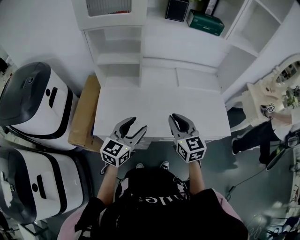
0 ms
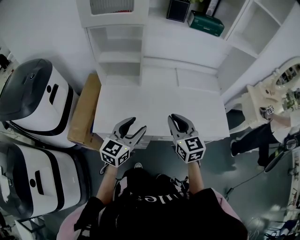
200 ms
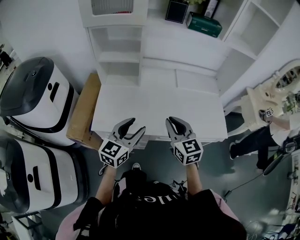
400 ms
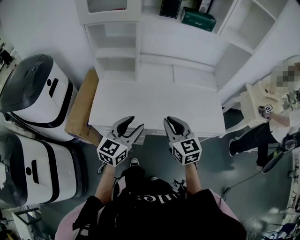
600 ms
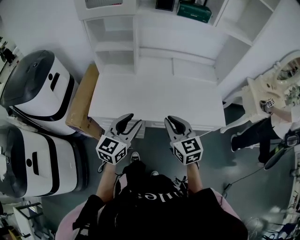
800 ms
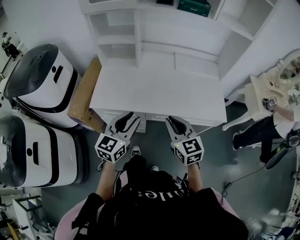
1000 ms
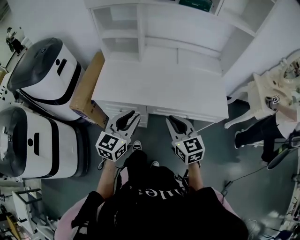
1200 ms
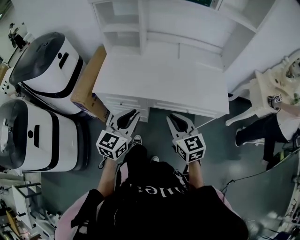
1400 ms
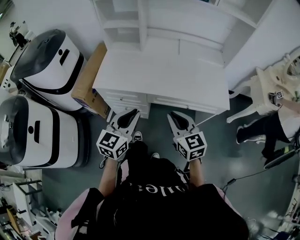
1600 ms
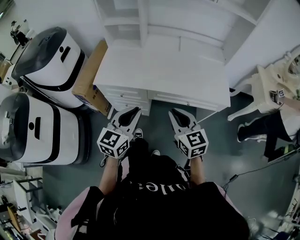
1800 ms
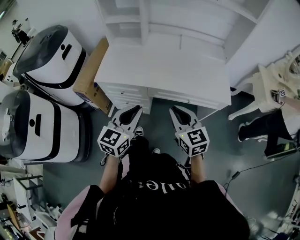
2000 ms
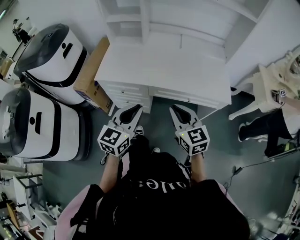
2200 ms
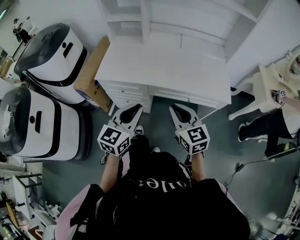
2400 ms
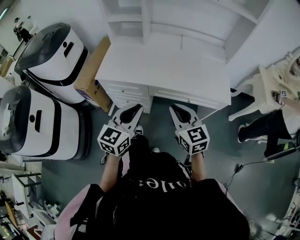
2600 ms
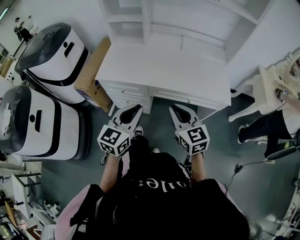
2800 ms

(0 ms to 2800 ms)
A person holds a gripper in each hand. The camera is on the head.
0 ms - 1400 ms: The two grippers go about 20 cm backward and to the right. The left gripper closes up.
1400 ms - 2800 ms: The left gripper goes roughly 5 cm backward.

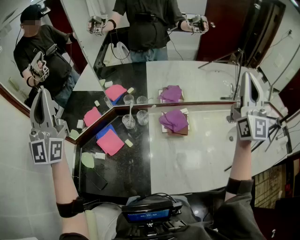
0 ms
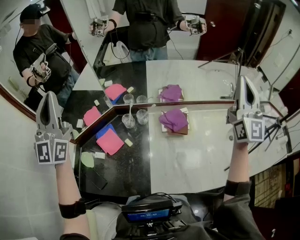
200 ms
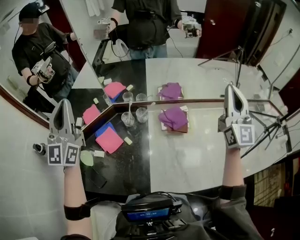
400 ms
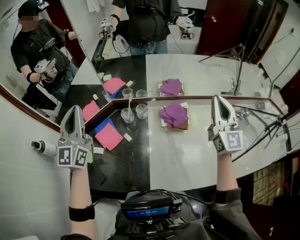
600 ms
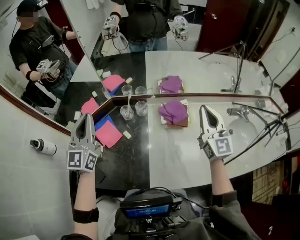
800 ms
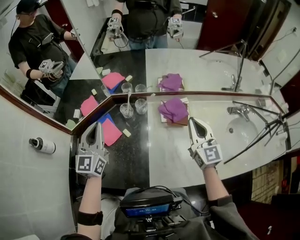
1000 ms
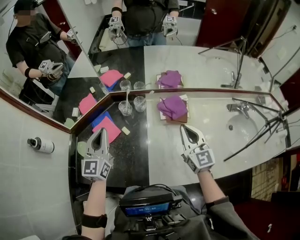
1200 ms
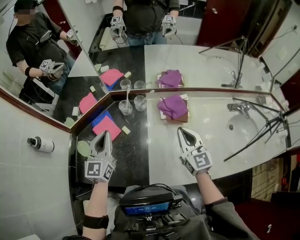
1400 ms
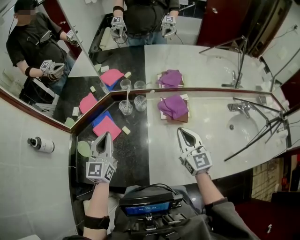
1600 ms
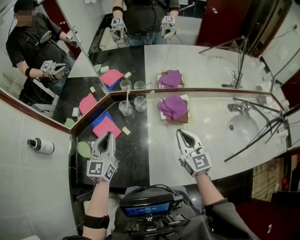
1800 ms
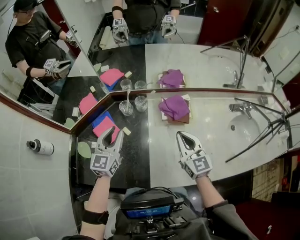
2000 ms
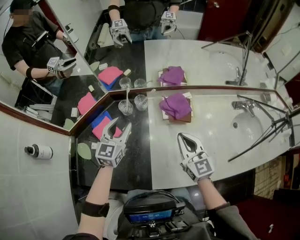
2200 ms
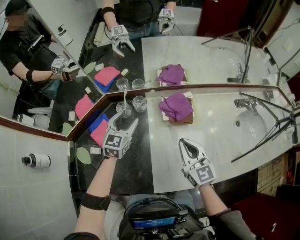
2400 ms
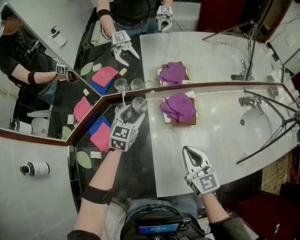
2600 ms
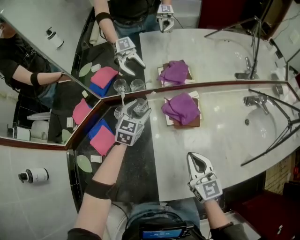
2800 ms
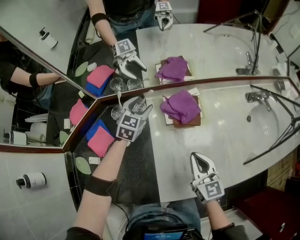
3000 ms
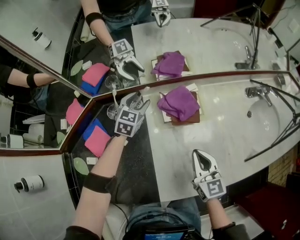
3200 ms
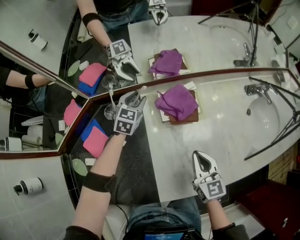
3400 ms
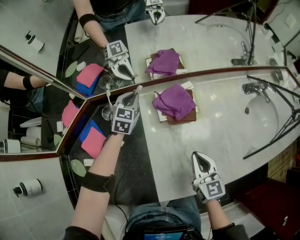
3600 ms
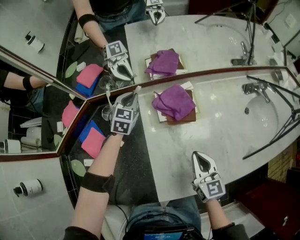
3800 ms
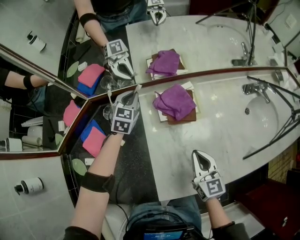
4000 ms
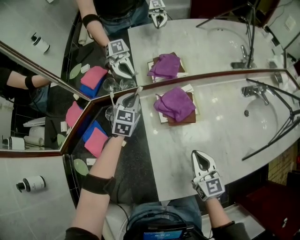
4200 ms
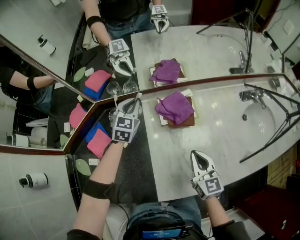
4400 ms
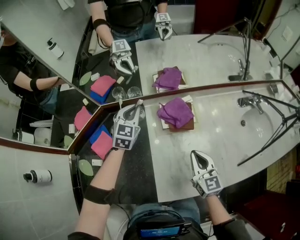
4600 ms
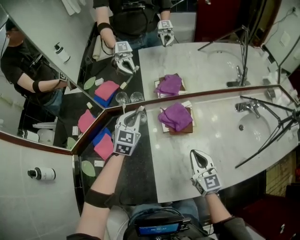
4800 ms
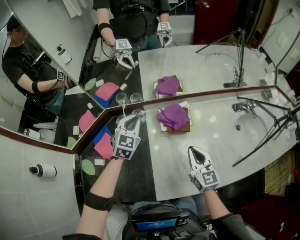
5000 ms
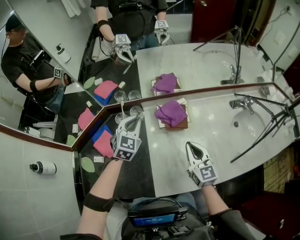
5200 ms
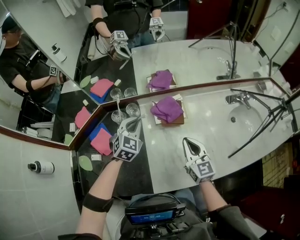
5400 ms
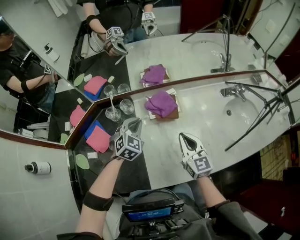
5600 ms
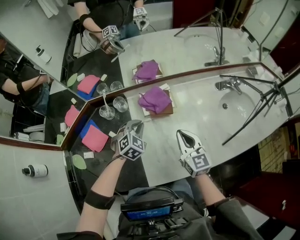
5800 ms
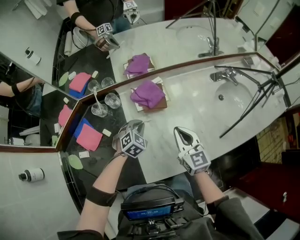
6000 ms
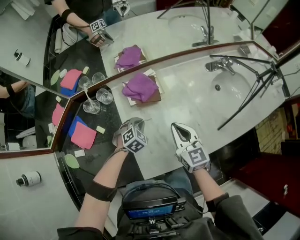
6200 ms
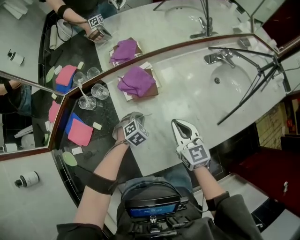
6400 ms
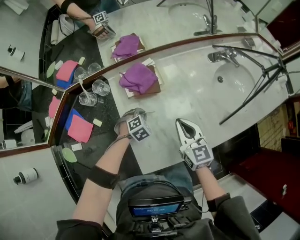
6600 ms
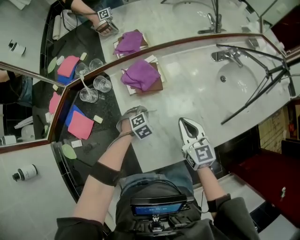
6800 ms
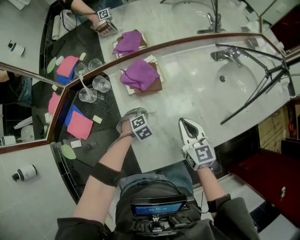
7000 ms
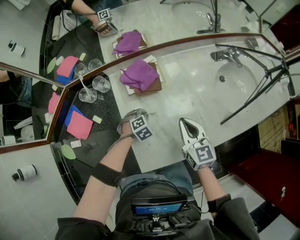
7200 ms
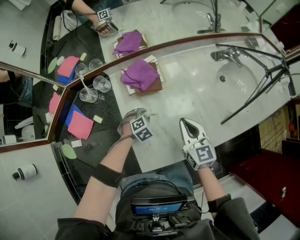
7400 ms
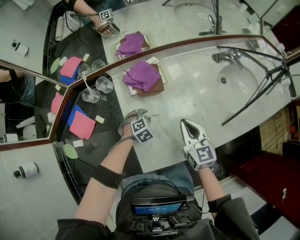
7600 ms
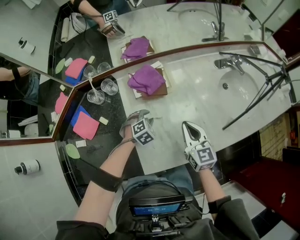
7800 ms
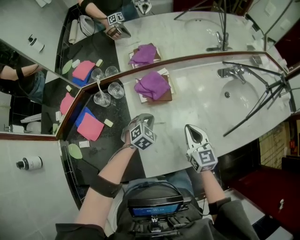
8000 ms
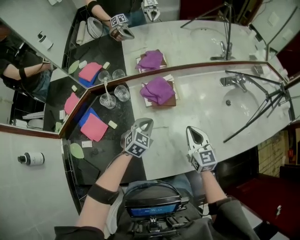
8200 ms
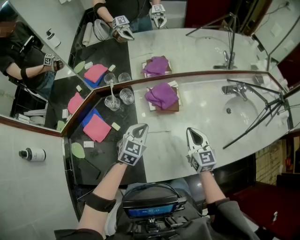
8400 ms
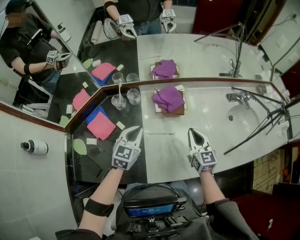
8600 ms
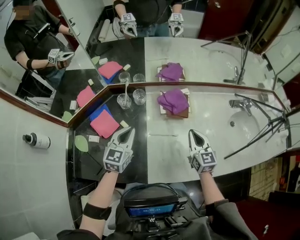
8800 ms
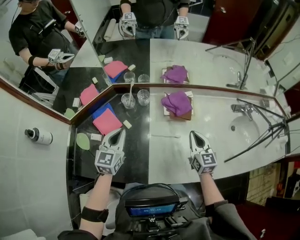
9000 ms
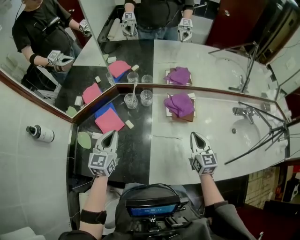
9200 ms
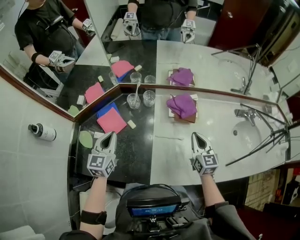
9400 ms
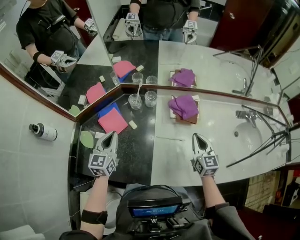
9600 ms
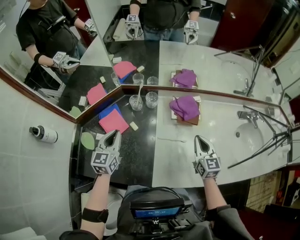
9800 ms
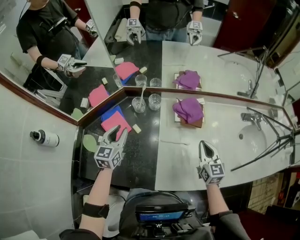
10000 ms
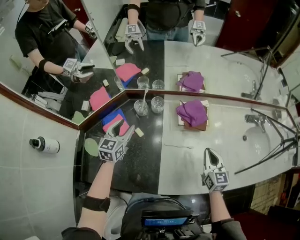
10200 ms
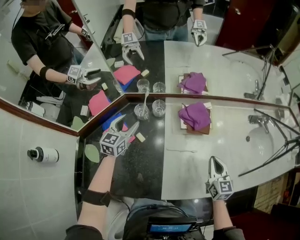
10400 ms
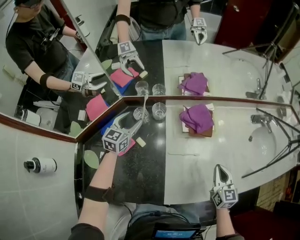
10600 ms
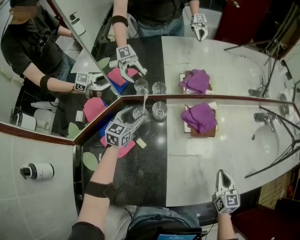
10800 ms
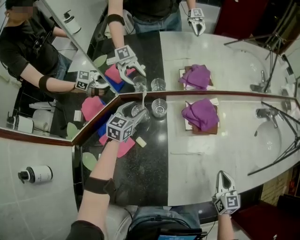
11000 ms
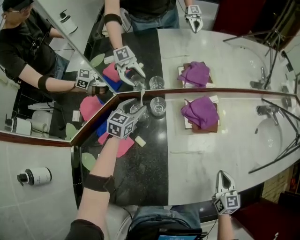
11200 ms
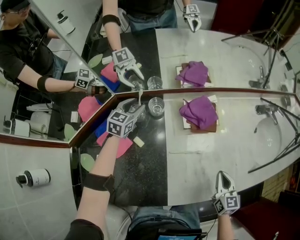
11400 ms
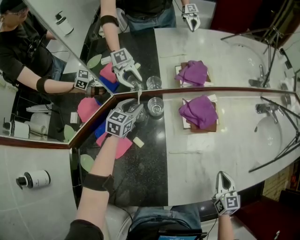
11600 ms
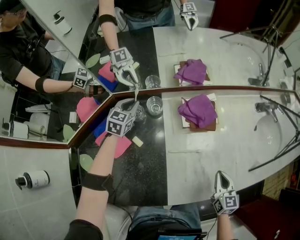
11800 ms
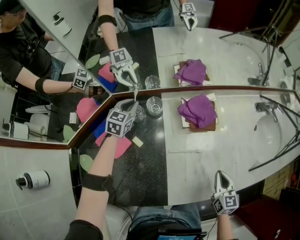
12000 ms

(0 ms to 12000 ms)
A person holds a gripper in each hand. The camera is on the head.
0 ms - 1600 ms: The left gripper heads downward, covering some 35 cm, and tips its fingers downward by approximately 40 degrees; the right gripper travels downward and to the left by about 40 cm, and tilts its fingers some 40 degrees downward.
1600 ms - 3000 ms: The right gripper shifts approximately 10 cm downward; the left gripper moves forward, downward and to the right, some 35 cm, changes its angle by about 40 degrees, and opens its fingers.
3000 ms - 4400 ms: The left gripper closes up.
4400 ms - 6000 ms: The left gripper moves backward and to the right, about 25 cm, and changes its angle by roughly 30 degrees. The right gripper travels upward by approximately 5 cm.
6000 ms - 7600 ms: The left gripper heads downward, covering approximately 15 cm, changes its angle by some 20 degrees, and opens up. Meanwhile the right gripper heads downward, covering some 5 cm.
7600 ms - 9000 ms: The right gripper moves to the left, roughly 10 cm. Meanwhile the left gripper heads upward and to the left, covering roughly 35 cm, tilts its fingers about 50 degrees upward, and closes up.
9000 ms - 10400 ms: The left gripper is displaced forward and downward by roughly 15 cm, and opens its fingers.
10400 ms - 12000 ms: The left gripper travels forward and downward by roughly 15 cm, and closes, while the right gripper is displaced downward and backward by approximately 10 cm.

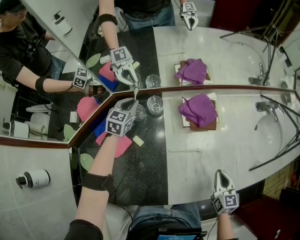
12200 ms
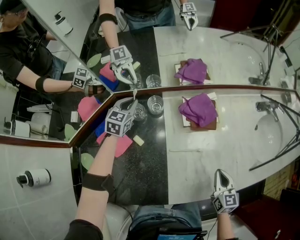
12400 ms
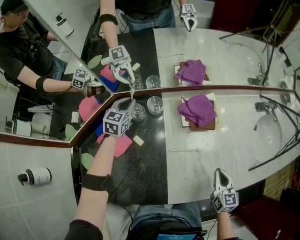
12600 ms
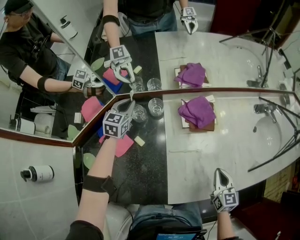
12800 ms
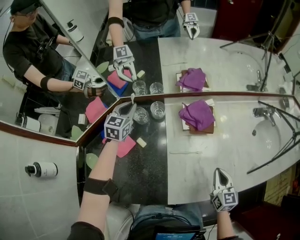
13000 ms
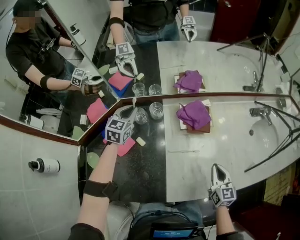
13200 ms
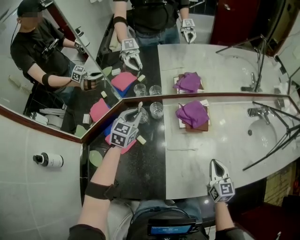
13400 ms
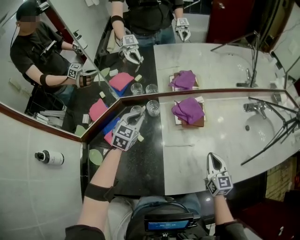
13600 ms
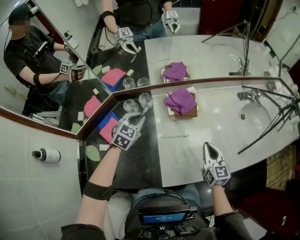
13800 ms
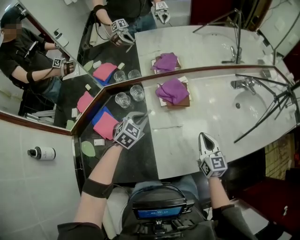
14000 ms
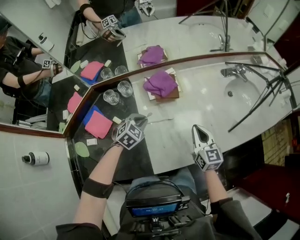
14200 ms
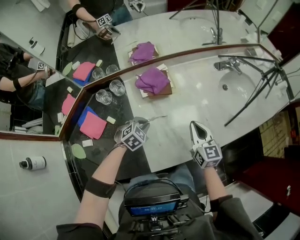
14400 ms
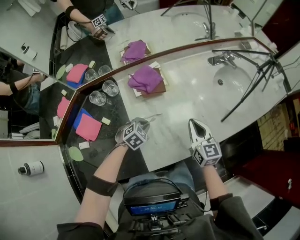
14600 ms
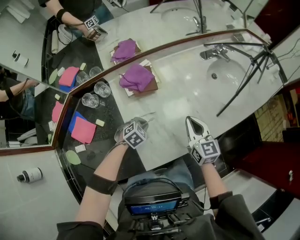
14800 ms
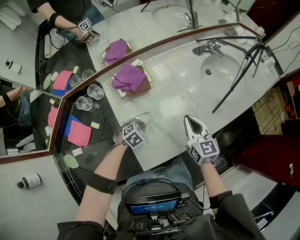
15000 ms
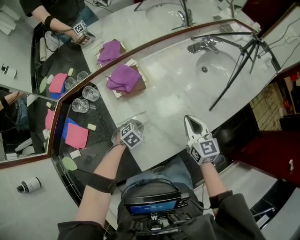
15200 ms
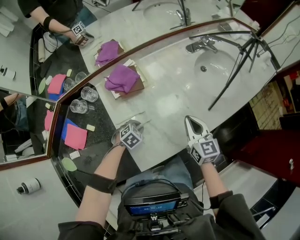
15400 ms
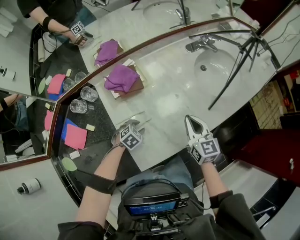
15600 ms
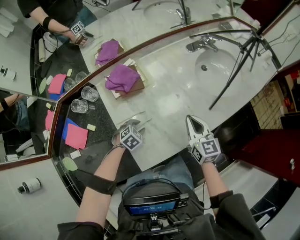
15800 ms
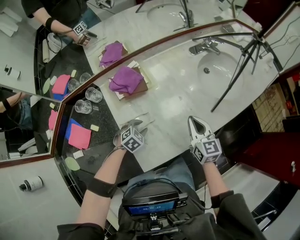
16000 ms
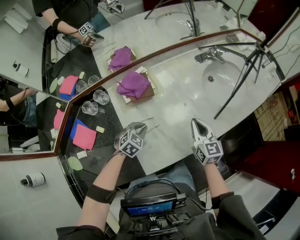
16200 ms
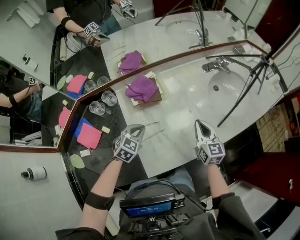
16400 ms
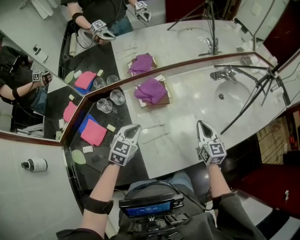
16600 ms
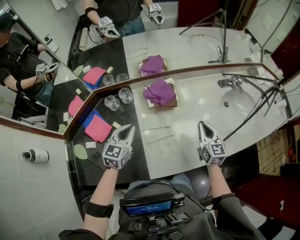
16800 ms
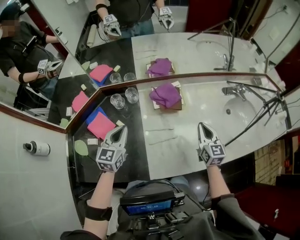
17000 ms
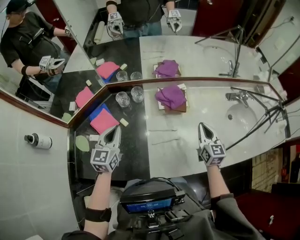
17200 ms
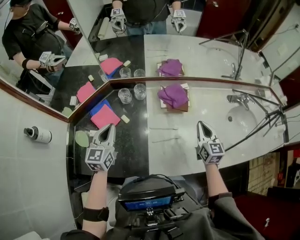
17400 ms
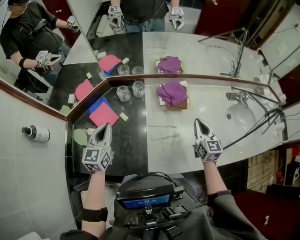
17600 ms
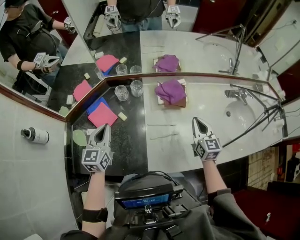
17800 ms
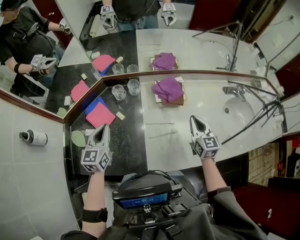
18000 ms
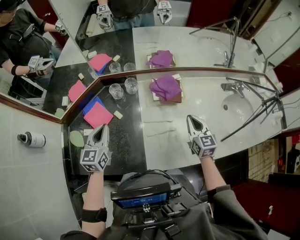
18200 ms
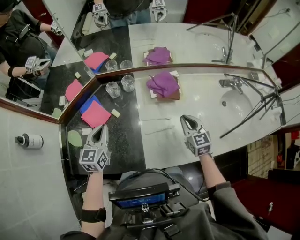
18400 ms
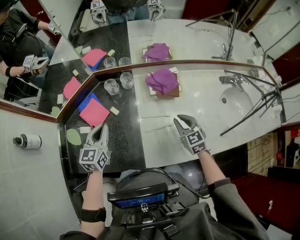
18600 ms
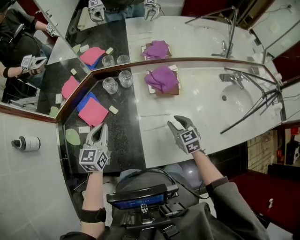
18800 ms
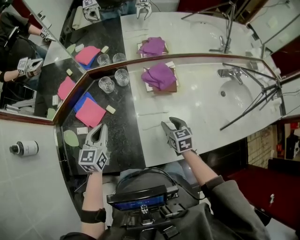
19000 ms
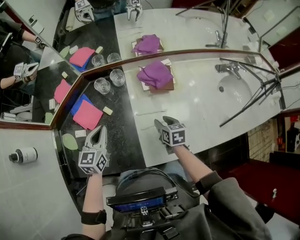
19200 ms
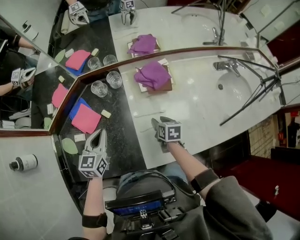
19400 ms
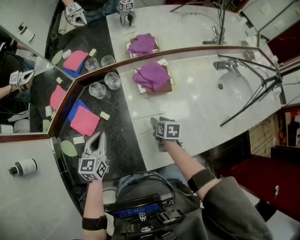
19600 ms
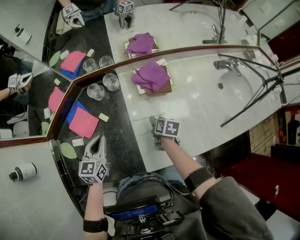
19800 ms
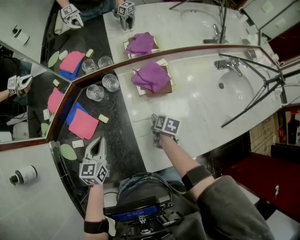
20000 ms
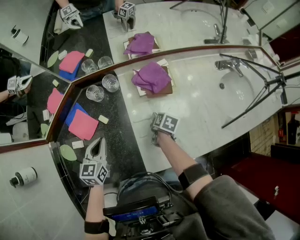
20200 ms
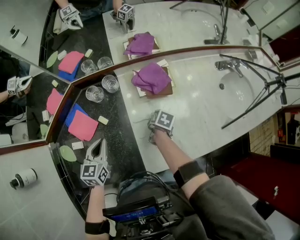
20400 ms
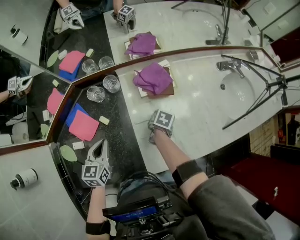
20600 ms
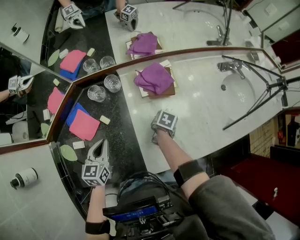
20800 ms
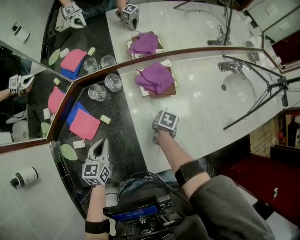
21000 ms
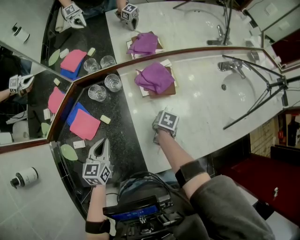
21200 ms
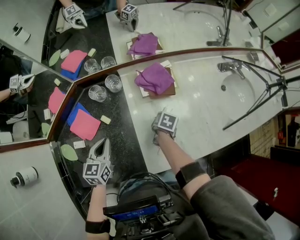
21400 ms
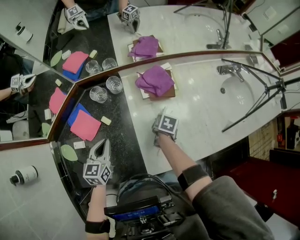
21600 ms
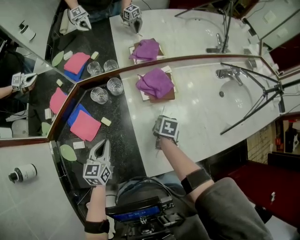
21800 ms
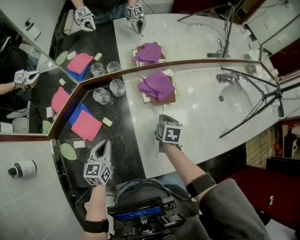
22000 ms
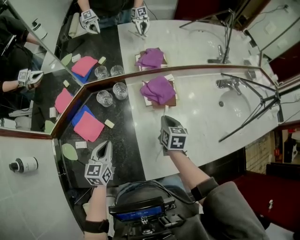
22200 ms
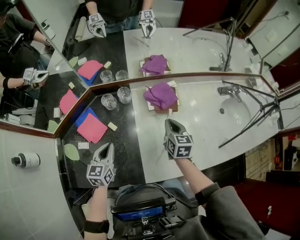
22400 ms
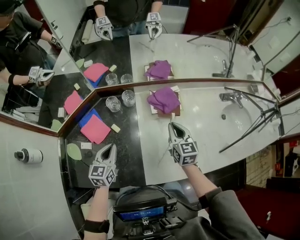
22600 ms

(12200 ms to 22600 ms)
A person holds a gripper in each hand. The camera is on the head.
12200 ms - 13600 ms: The right gripper shifts roughly 5 cm upward. The left gripper heads upward, backward and to the right, covering about 20 cm.
13600 ms - 15200 ms: The right gripper moves roughly 15 cm, while the left gripper moves roughly 40 cm, and angles its fingers downward, by approximately 30 degrees.
15200 ms - 16600 ms: The right gripper changes place by some 5 cm. Meanwhile the left gripper travels upward and to the left by approximately 25 cm, angles its fingers upward, by some 30 degrees, and opens, then closes once more.
16600 ms - 18200 ms: The right gripper shifts about 10 cm to the left; the left gripper heads to the left, covering some 20 cm, and changes its angle by roughly 40 degrees.
18200 ms - 19600 ms: The left gripper goes roughly 5 cm downward; the right gripper shifts about 20 cm downward and to the left, points its fingers roughly 30 degrees further downward, and opens up.
19600 ms - 21200 ms: The right gripper ends up about 5 cm from where it was, turns by some 30 degrees, and closes.
21200 ms - 22600 ms: The right gripper travels upward by approximately 20 cm, and tips its fingers upward by some 50 degrees.
